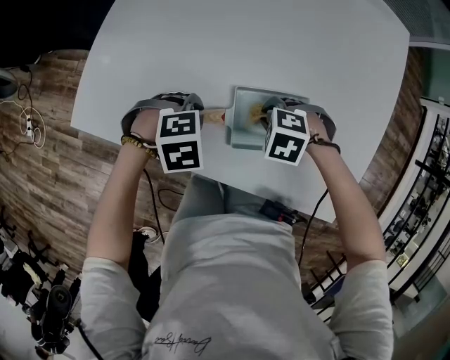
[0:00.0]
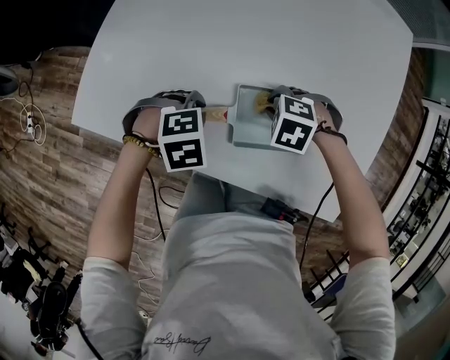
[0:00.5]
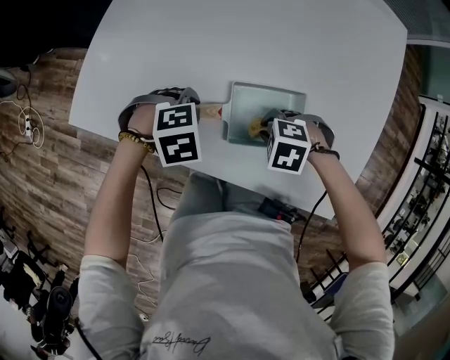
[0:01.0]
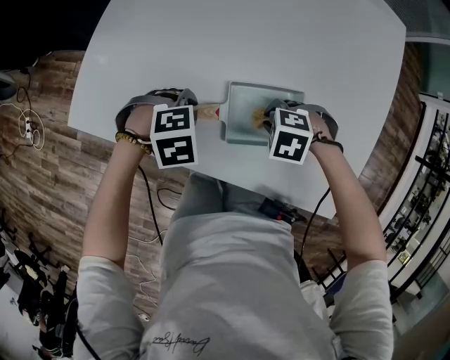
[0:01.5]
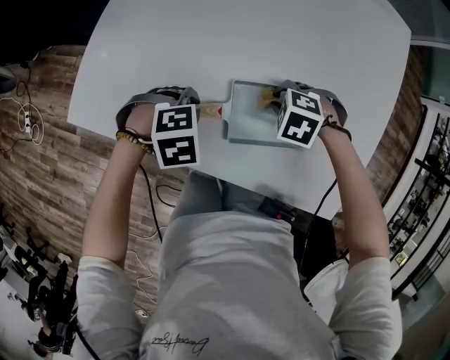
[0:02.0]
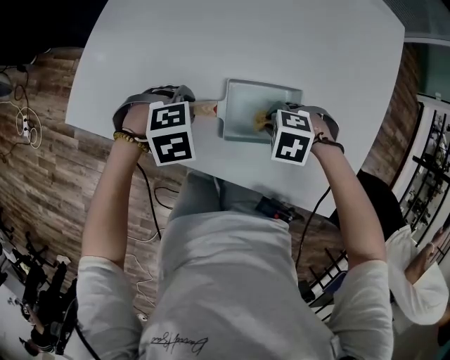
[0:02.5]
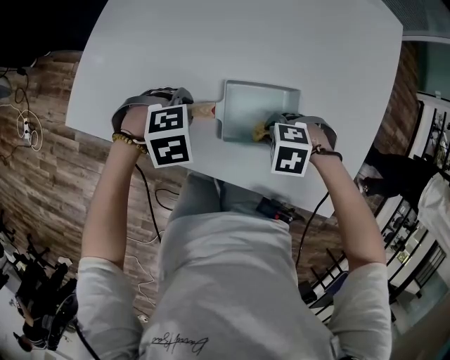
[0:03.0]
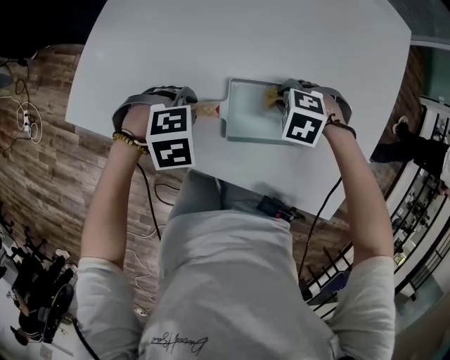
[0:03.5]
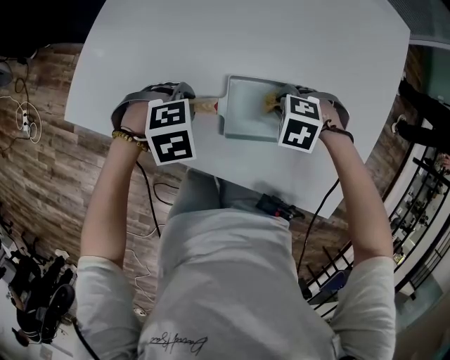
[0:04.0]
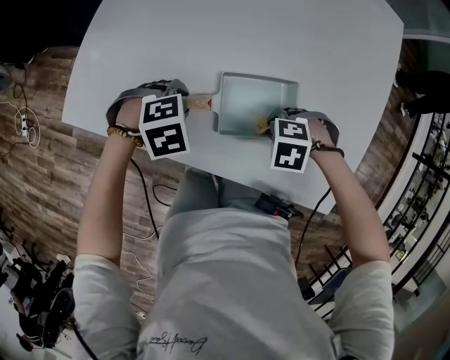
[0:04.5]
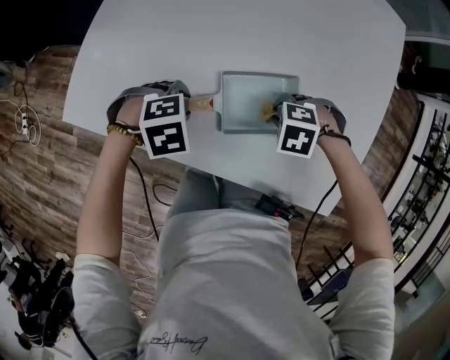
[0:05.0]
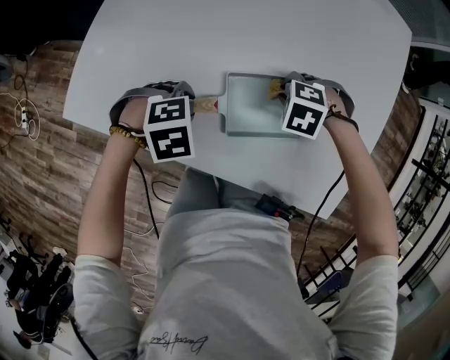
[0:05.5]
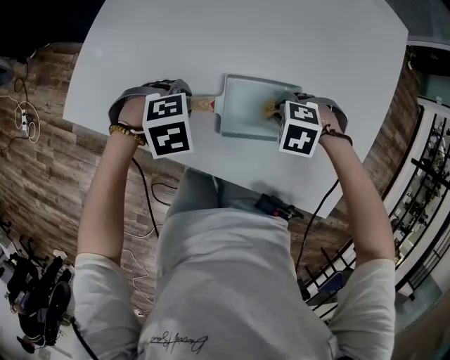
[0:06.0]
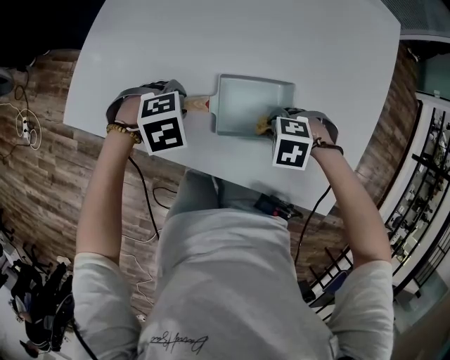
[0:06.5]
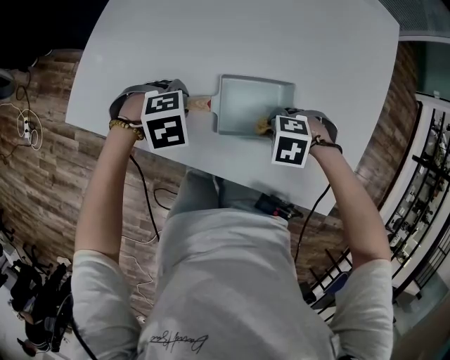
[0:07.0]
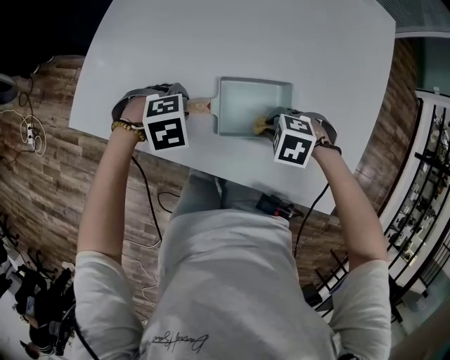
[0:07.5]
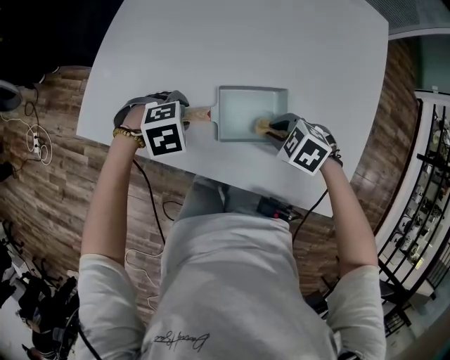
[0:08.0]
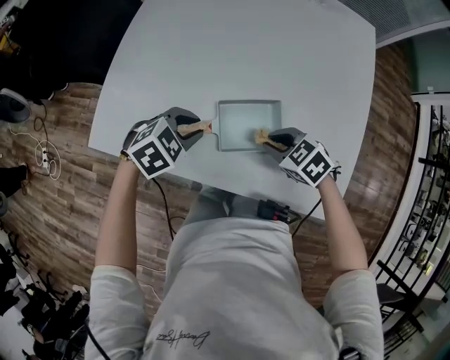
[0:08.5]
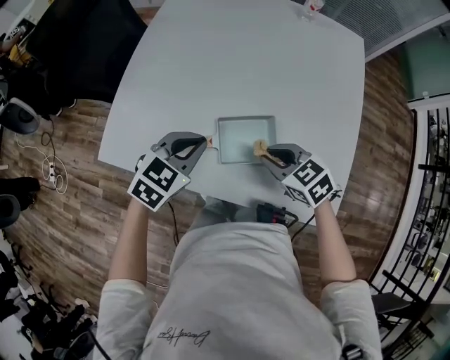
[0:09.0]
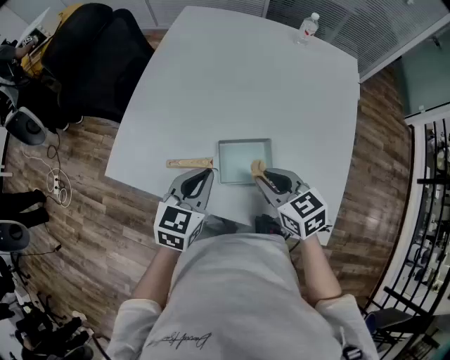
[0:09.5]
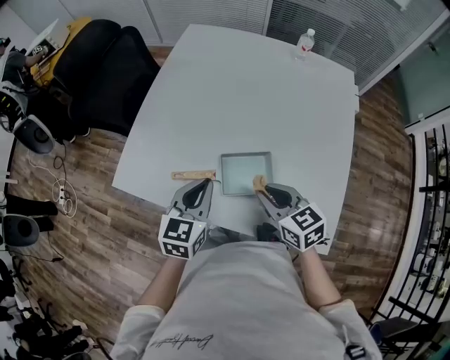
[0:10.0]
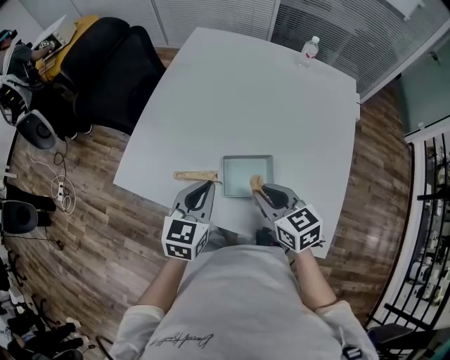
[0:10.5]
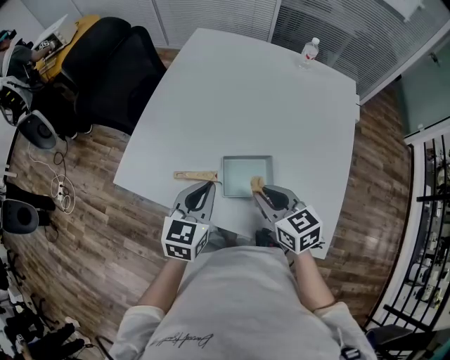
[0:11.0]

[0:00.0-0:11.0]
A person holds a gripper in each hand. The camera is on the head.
0:00.0 to 0:02.0: The grippers make only small movements.
0:05.5 to 0:07.5: The right gripper ends up roughly 10 cm from where it was.
0:07.5 to 0:09.0: Both grippers move upward, roughly 15 cm. The right gripper tips its fingers upward by approximately 30 degrees. The left gripper tilts its fingers approximately 40 degrees upward, and closes its fingers.
0:09.0 to 0:11.0: The right gripper travels upward by roughly 5 cm, and rotates about 20 degrees. Meanwhile the left gripper shifts by some 5 cm, and turns by approximately 30 degrees.

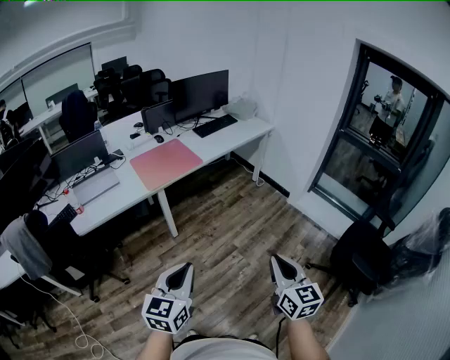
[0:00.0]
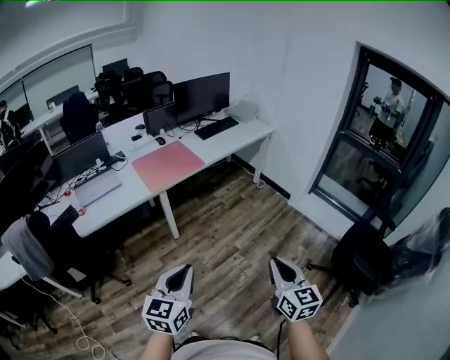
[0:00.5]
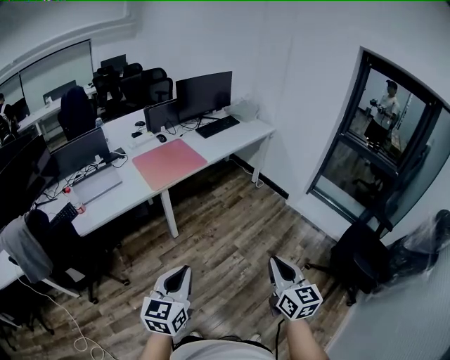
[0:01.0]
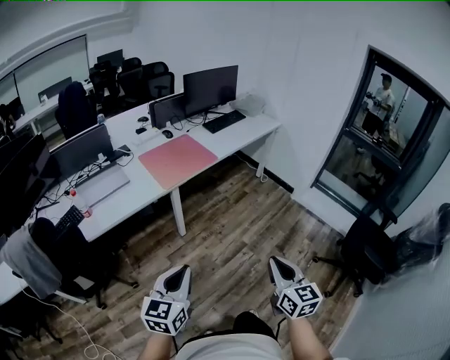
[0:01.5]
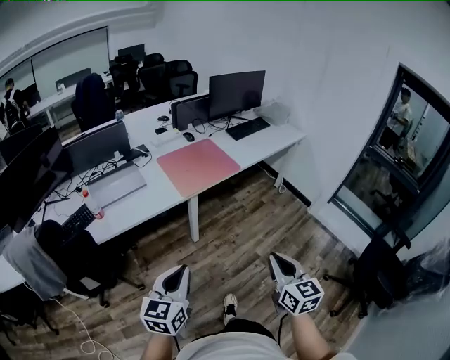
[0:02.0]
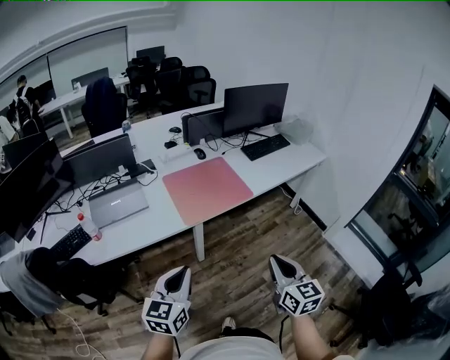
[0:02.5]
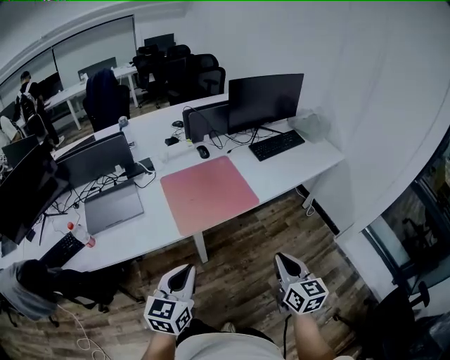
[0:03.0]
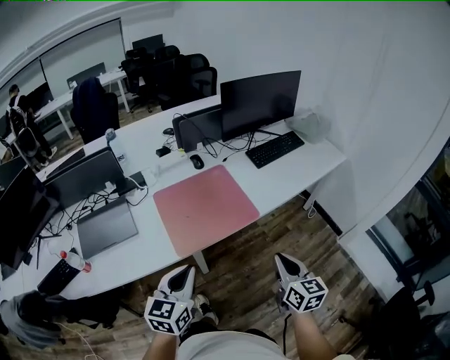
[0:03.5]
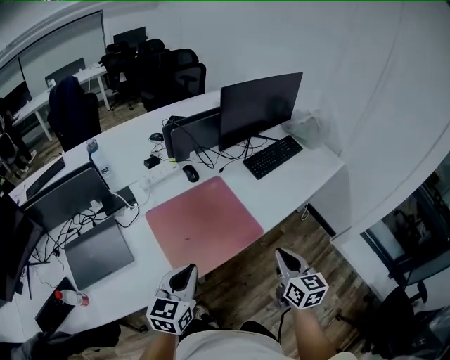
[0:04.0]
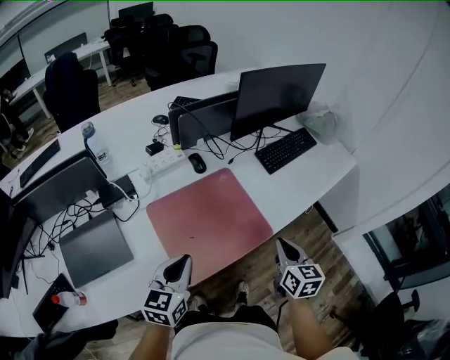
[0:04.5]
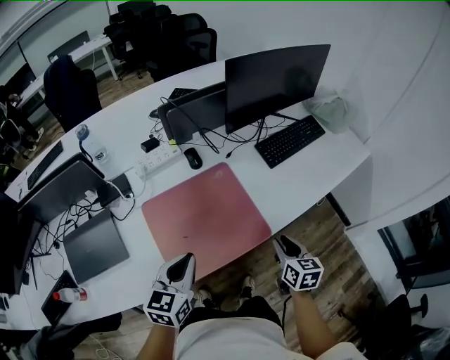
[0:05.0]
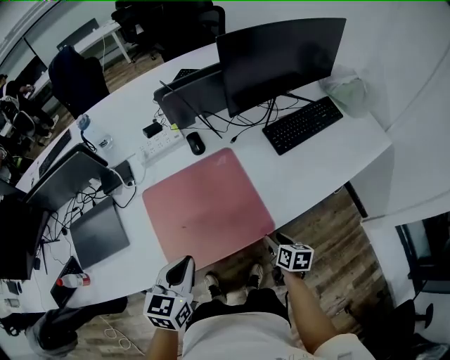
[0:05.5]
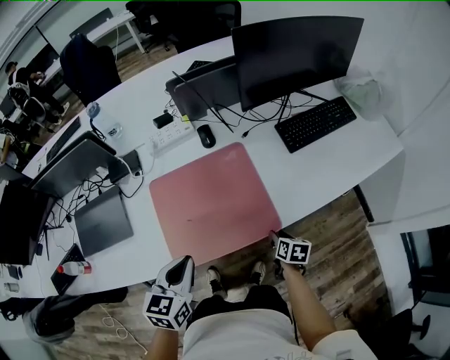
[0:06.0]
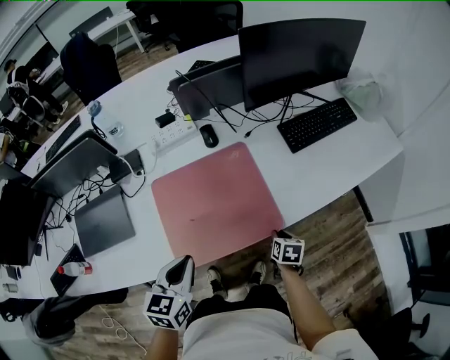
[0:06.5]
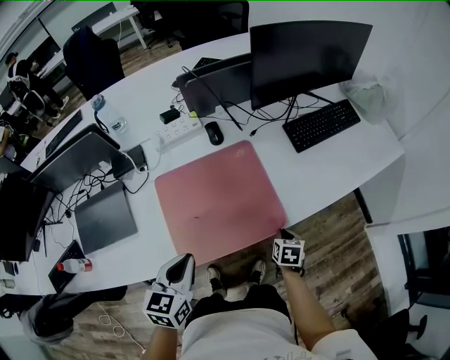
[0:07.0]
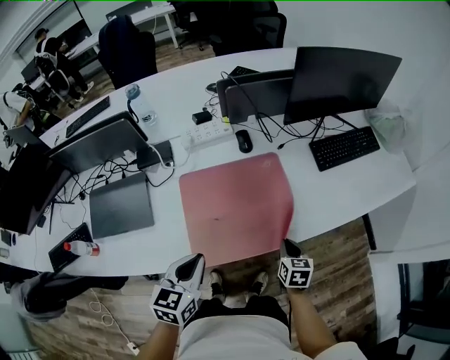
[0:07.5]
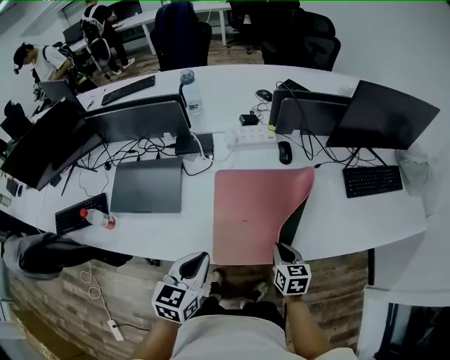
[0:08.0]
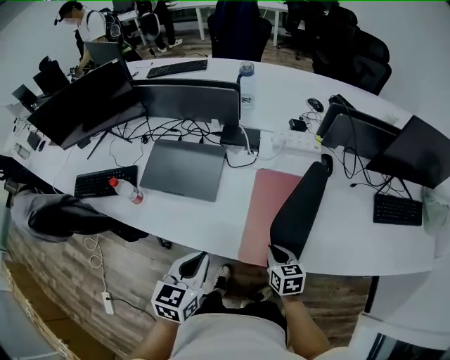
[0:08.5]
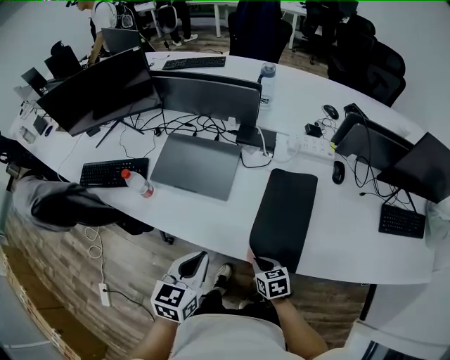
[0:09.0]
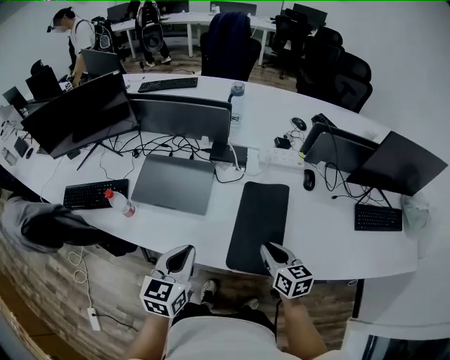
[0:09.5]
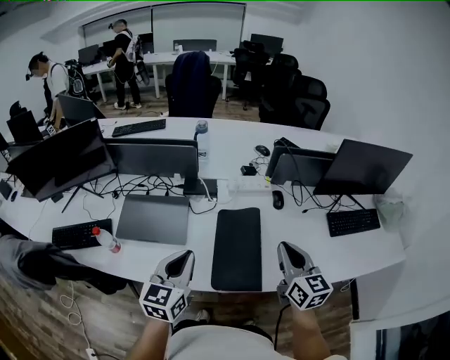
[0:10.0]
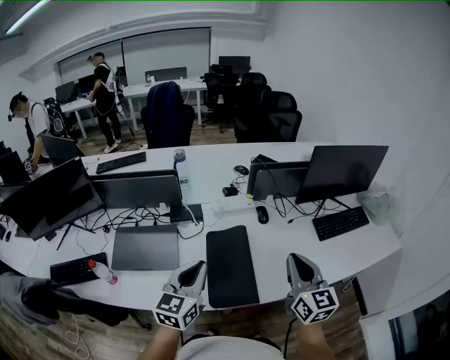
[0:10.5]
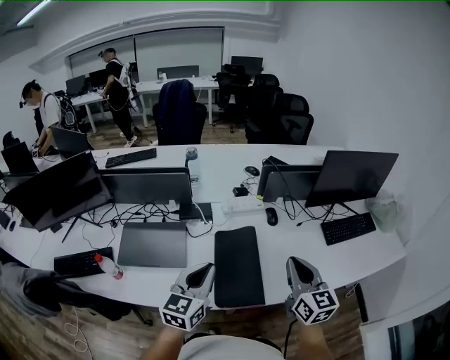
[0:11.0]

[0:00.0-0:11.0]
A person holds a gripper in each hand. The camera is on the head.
0:00.0 to 0:02.0: The left gripper shifts some 25 cm to the left, while the right gripper goes about 25 cm to the left and forward.
0:02.0 to 0:03.5: Both grippers travel together forward, some 40 cm.
0:03.5 to 0:05.5: The right gripper moves forward and downward, some 35 cm, rotates approximately 40 degrees, and opens up. The left gripper goes roughly 20 cm forward.
0:05.5 to 0:07.5: Both grippers travel together to the left, roughly 5 cm. The right gripper turns by some 20 degrees, and closes up.
0:07.5 to 0:09.0: The right gripper shifts by some 30 cm, and turns by approximately 50 degrees; the left gripper shifts by some 20 cm, and turns by about 30 degrees.
0:09.0 to 0:11.0: The left gripper changes place by about 20 cm, and changes its angle by roughly 30 degrees, while the right gripper is displaced upward by about 35 cm, and points its fingers about 50 degrees further upward.

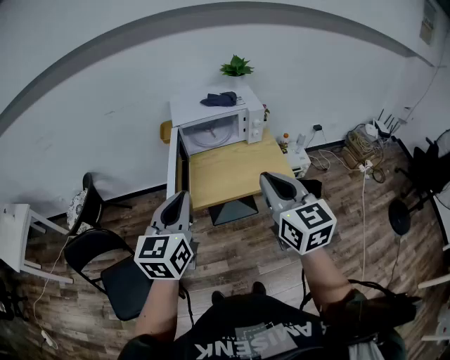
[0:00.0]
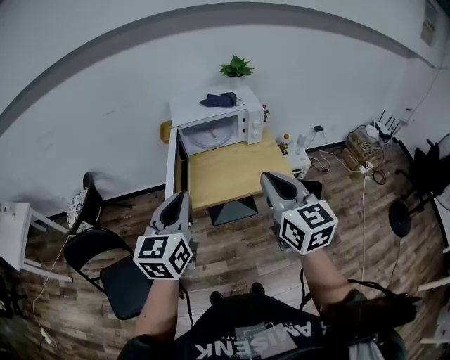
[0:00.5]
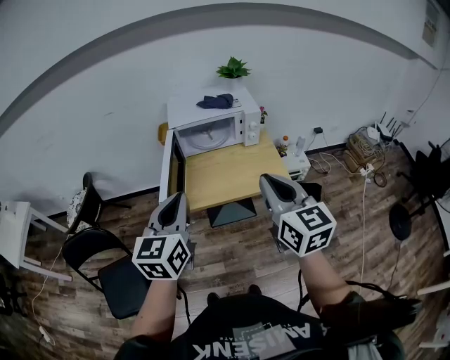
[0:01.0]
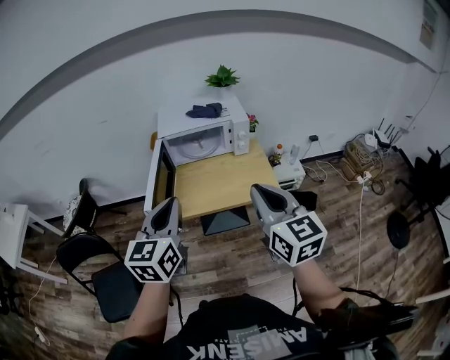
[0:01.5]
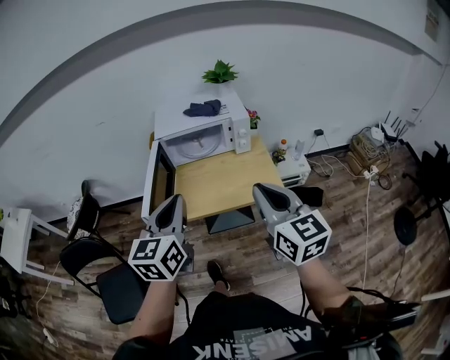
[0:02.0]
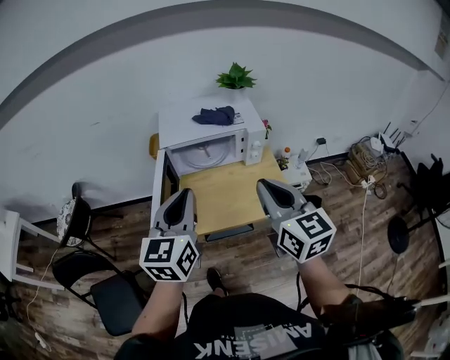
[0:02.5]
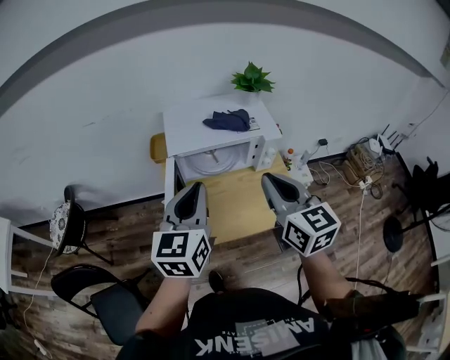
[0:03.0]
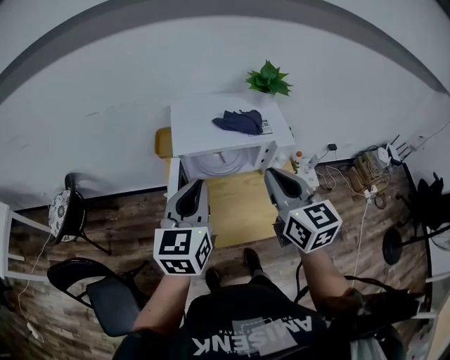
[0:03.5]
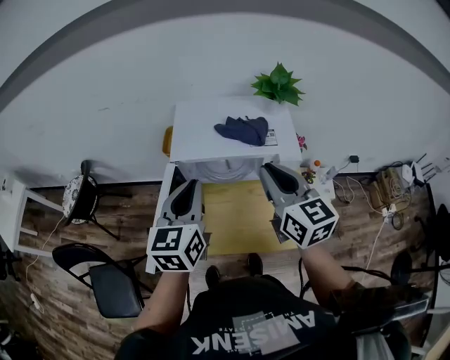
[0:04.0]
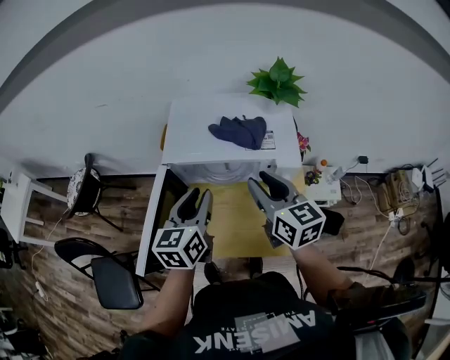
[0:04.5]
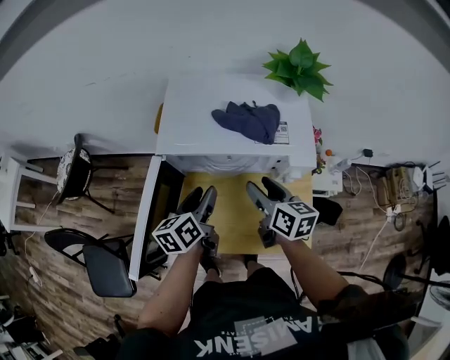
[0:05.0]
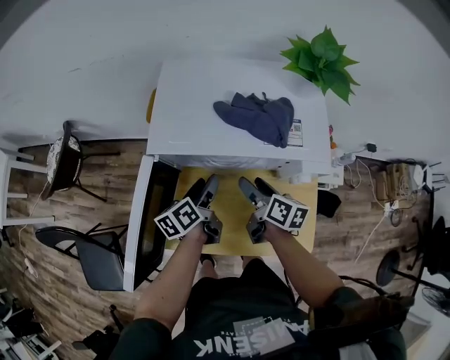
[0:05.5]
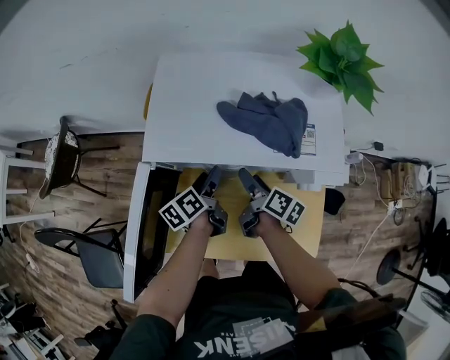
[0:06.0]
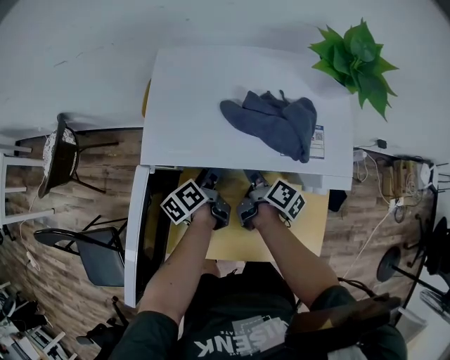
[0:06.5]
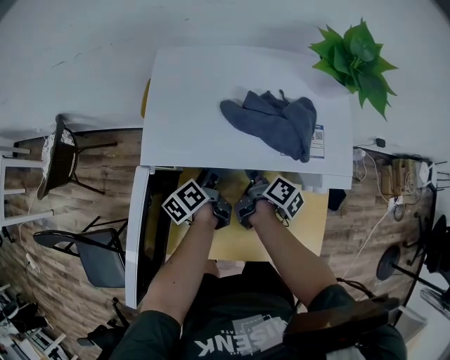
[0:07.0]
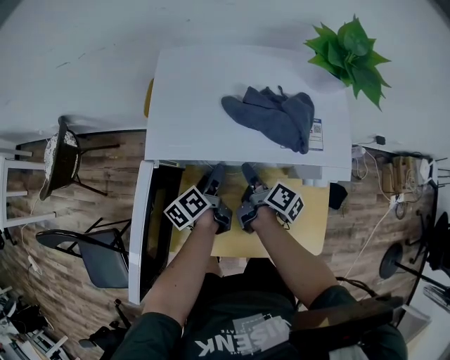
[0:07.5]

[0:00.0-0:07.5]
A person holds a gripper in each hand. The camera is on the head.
0:00.0 to 0:02.0: The two grippers go about 10 cm to the right.
0:02.0 to 0:04.0: Both grippers move forward, approximately 30 cm.
0:04.0 to 0:05.5: The grippers both shift downward by about 30 cm. The right gripper rotates around the line of its fingers by approximately 40 degrees, clockwise from behind, and opens up; the left gripper rotates around the line of its fingers by about 50 degrees, counterclockwise from behind, and opens.
0:05.5 to 0:07.5: The grippers both shift downward by roughly 5 cm. The right gripper turns by approximately 30 degrees.
